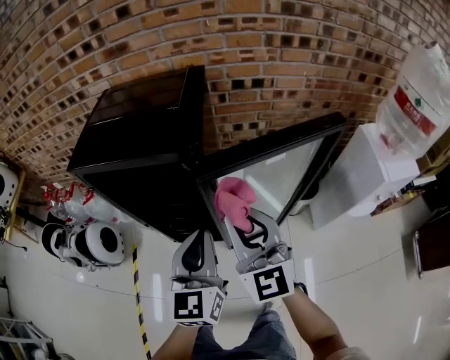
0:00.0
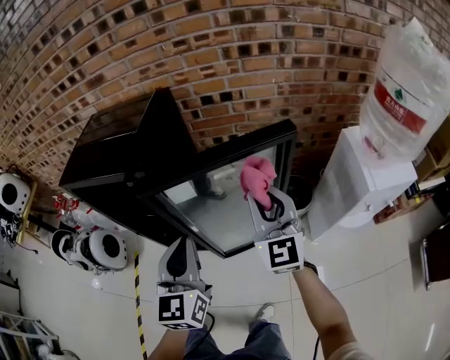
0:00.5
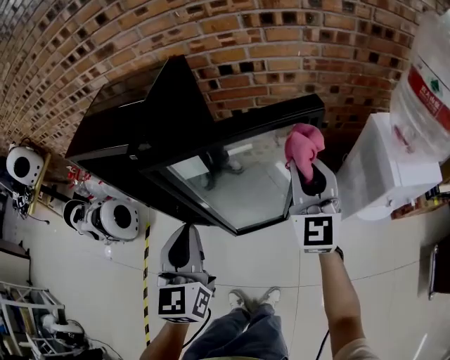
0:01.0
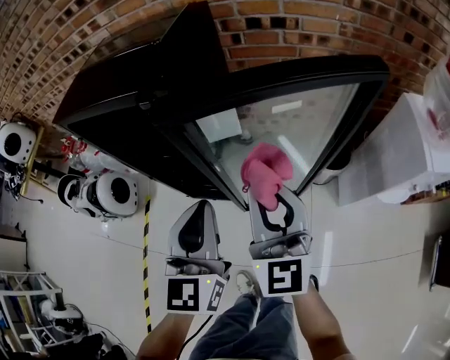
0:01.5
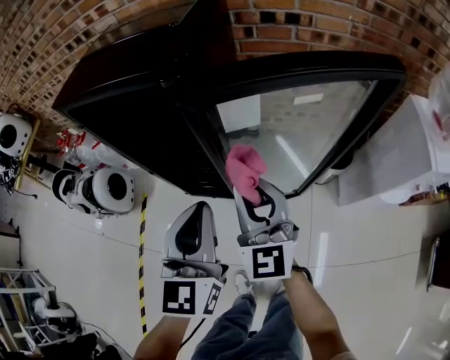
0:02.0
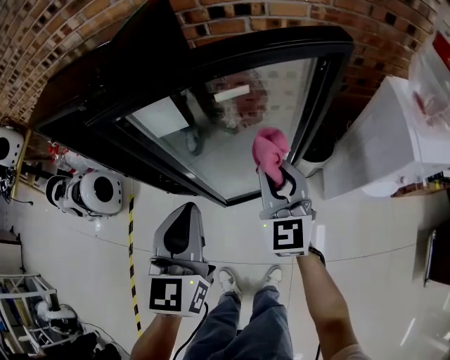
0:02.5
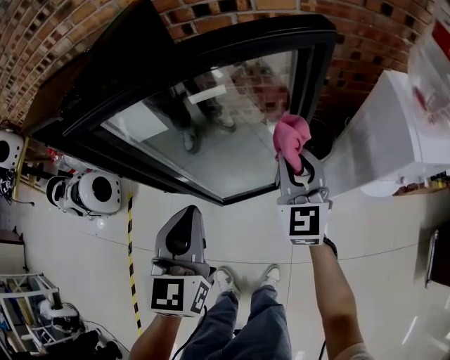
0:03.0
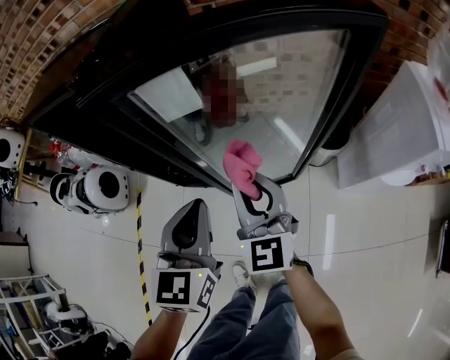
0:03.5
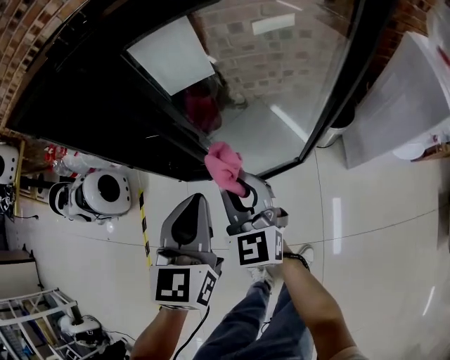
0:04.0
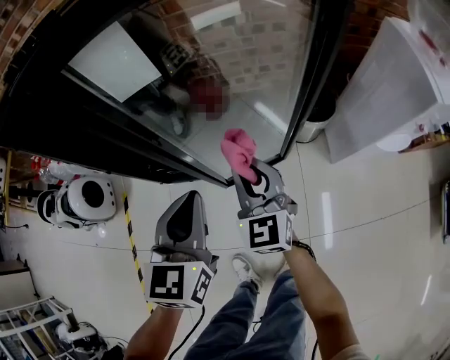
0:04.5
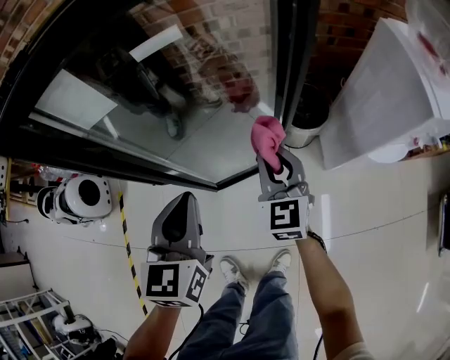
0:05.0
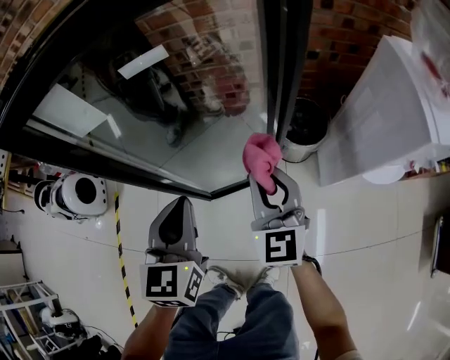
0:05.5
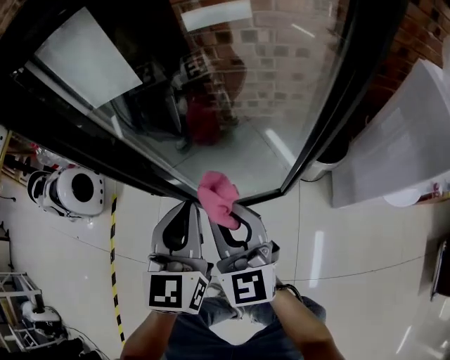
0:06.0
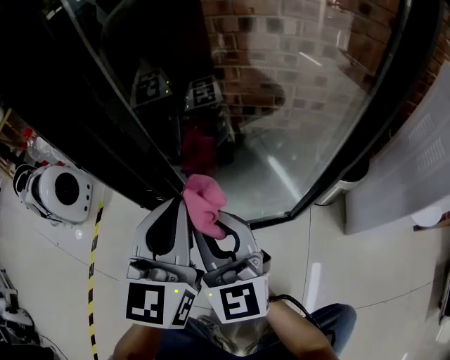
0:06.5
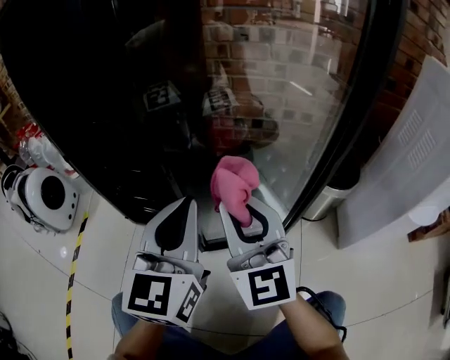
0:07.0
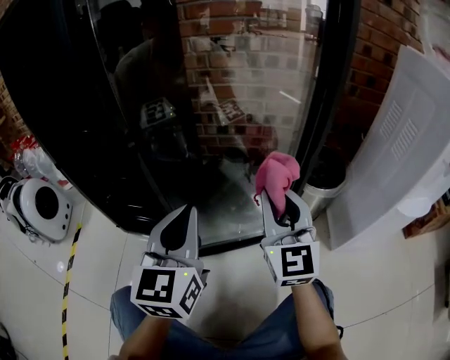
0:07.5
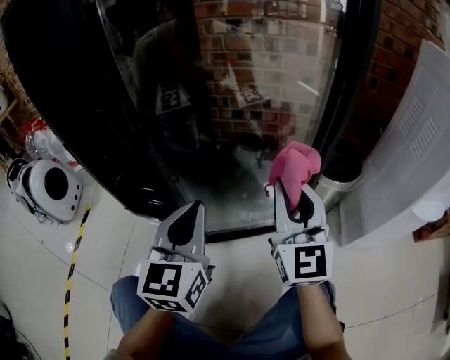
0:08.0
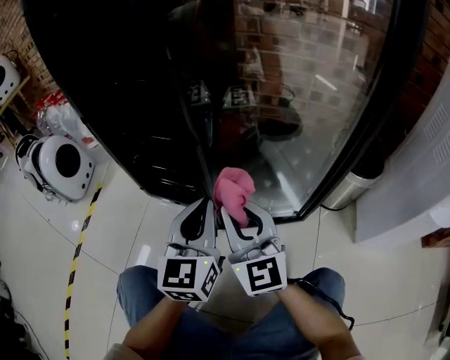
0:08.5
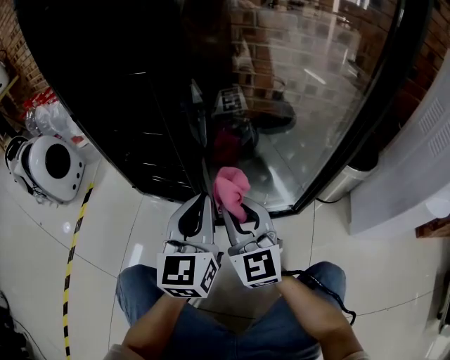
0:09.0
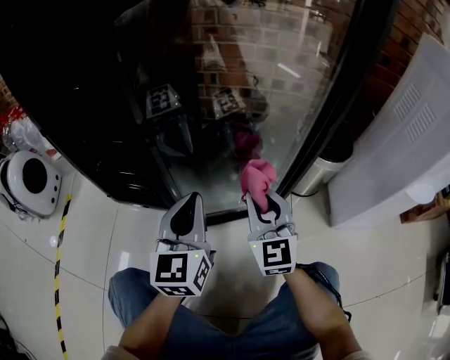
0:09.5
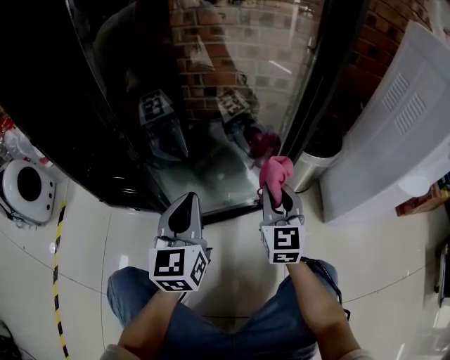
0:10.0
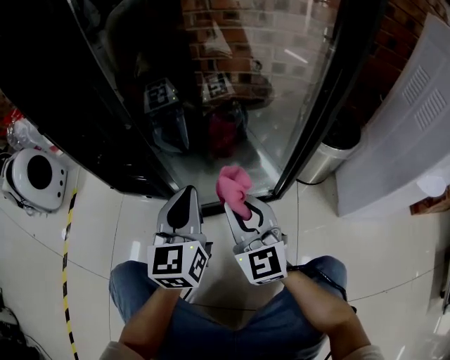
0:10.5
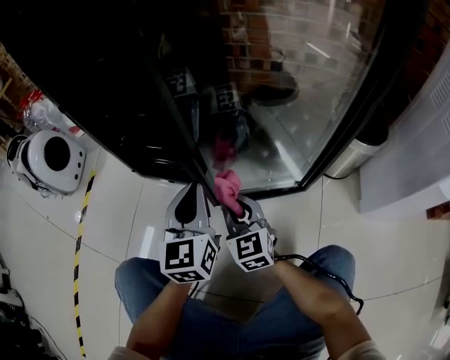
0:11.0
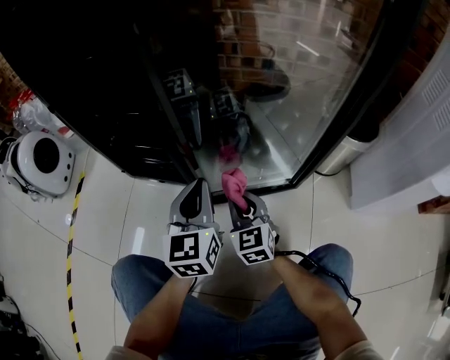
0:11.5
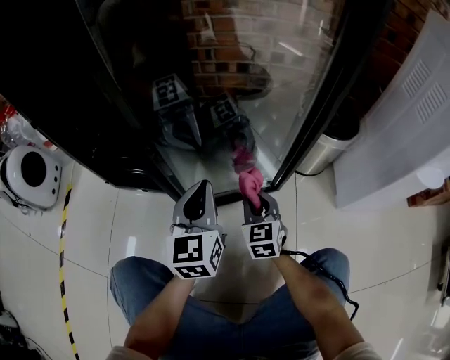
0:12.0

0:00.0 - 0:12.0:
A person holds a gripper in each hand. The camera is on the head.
0:00.0 - 0:02.0: The left gripper goes about 5 cm downward, and travels to the right and back again, some 10 cm each way; the right gripper travels downward by about 10 cm, and travels to the right and back again, roughly 25 cm each way.
0:02.0 - 0:04.0: Both grippers move downward, approximately 10 cm. The left gripper reaches about 15 cm to the right, then returns. Meanwhile the right gripper travels to the right and back again, about 25 cm each way.
0:04.0 - 0:06.0: The right gripper shifts approximately 5 cm downward, and travels to the right and back again, roughly 25 cm each way. The left gripper shifts some 10 cm downward and to the right.
0:06.0 - 0:08.0: The left gripper is displaced downward by approximately 20 cm. The right gripper travels downward and to the right by approximately 20 cm, and changes its angle by some 20 degrees.
0:08.0 - 0:10.0: The right gripper heads downward, covering approximately 15 cm, goes to the left and returns, about 20 cm each way, and changes its angle by about 20 degrees. Meanwhile the left gripper travels downward by approximately 10 cm.
0:10.0 - 0:12.0: The left gripper moves some 10 cm to the left and comes back. Meanwhile the right gripper travels downward and to the left by roughly 15 cm.

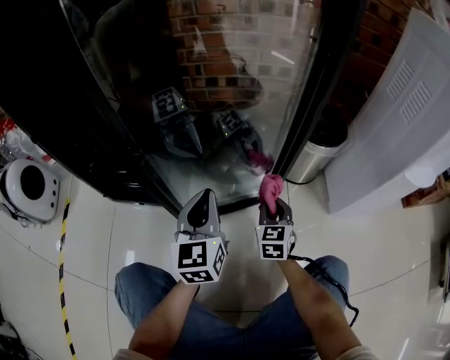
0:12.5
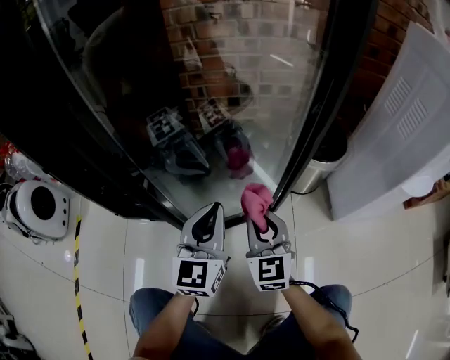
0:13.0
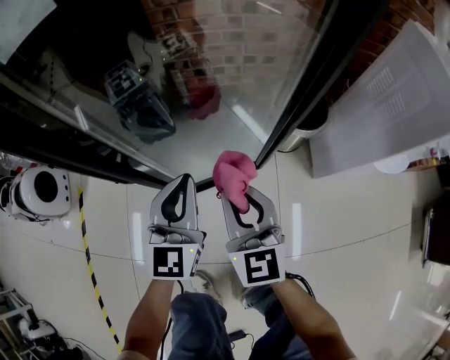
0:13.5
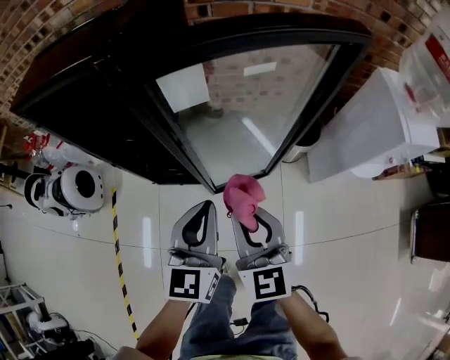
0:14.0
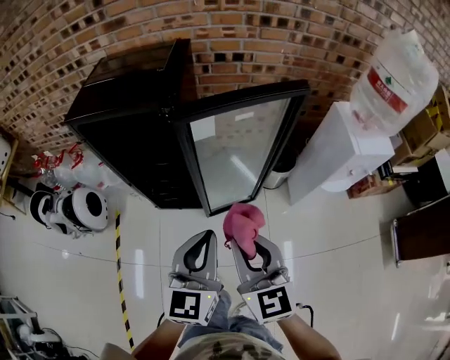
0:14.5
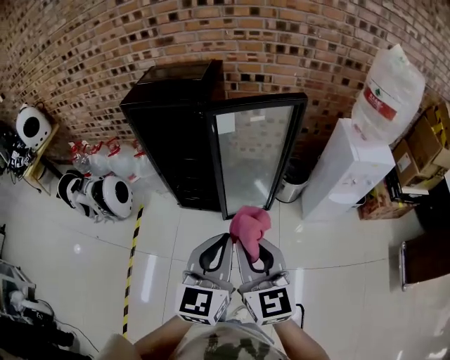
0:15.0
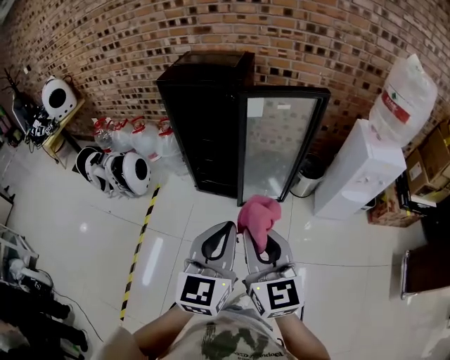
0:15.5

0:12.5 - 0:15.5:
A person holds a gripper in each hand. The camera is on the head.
0:12.5 - 0:14.0: The grippers both shift upward by about 50 cm. The right gripper rotates some 20 degrees.
0:14.0 - 0:15.5: Both grippers move backward and upward, roughly 40 cm.

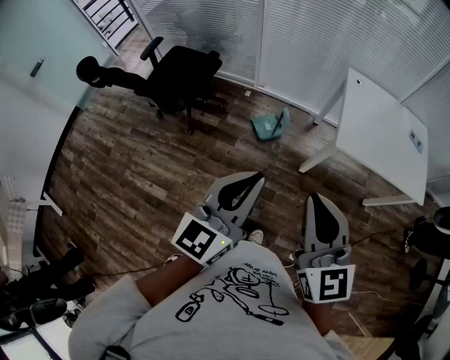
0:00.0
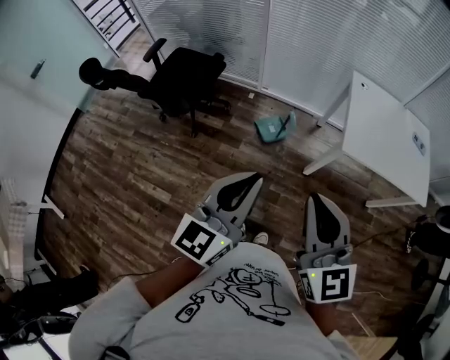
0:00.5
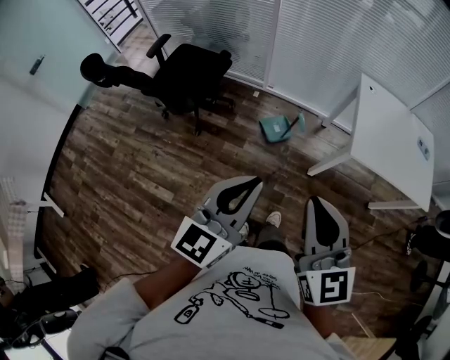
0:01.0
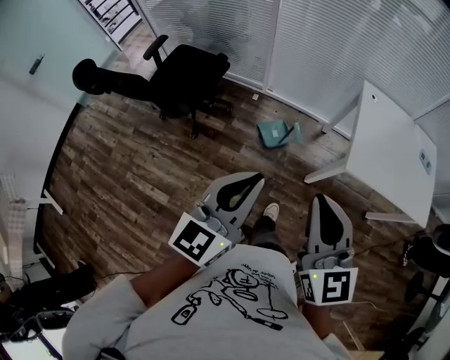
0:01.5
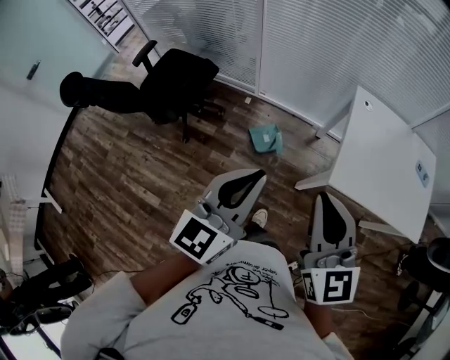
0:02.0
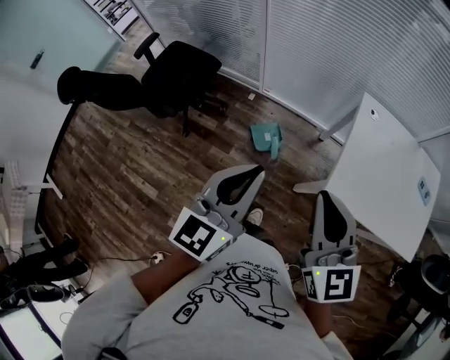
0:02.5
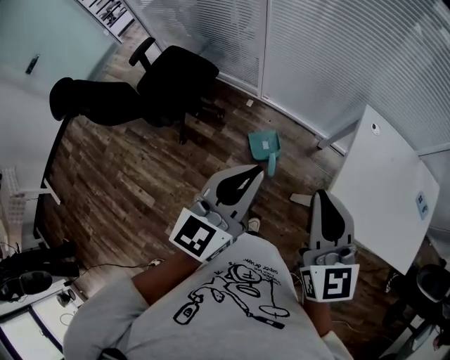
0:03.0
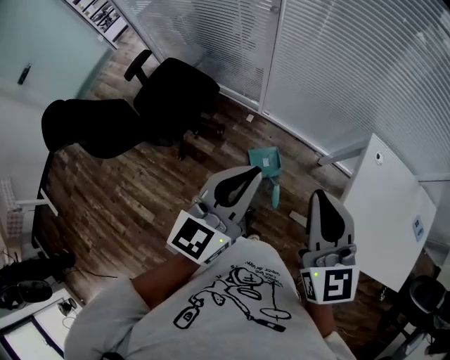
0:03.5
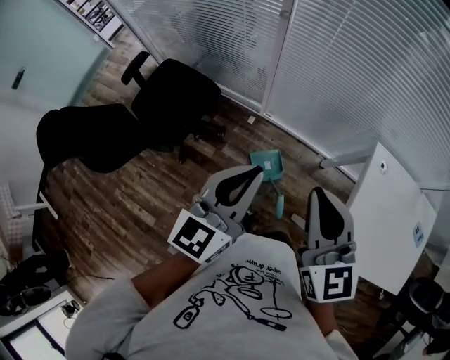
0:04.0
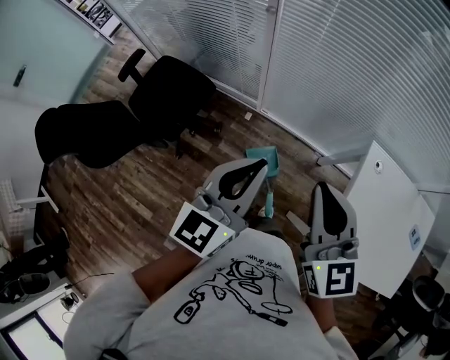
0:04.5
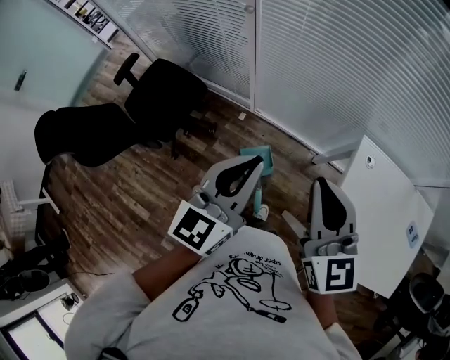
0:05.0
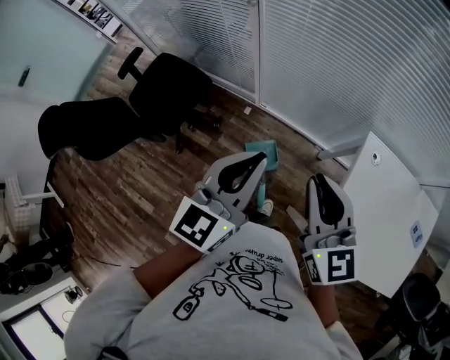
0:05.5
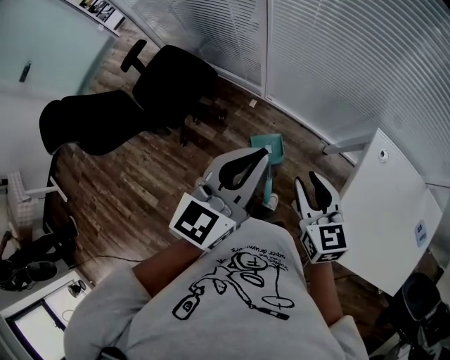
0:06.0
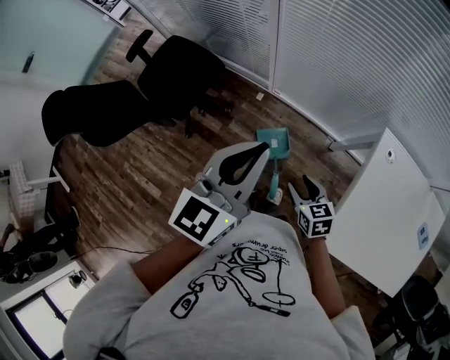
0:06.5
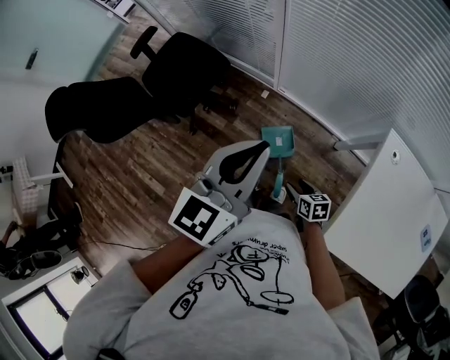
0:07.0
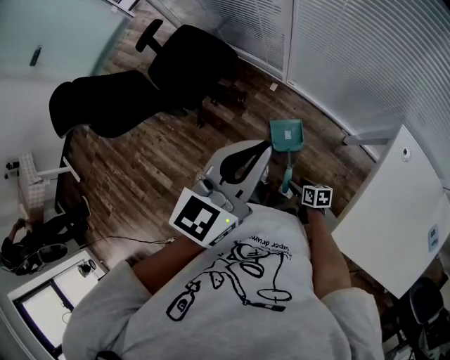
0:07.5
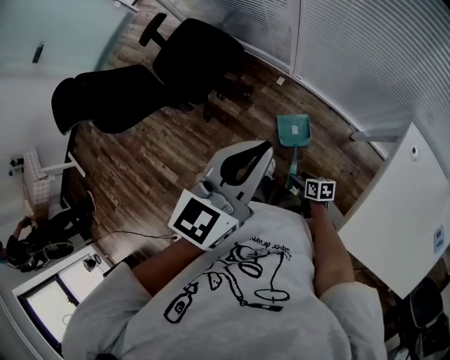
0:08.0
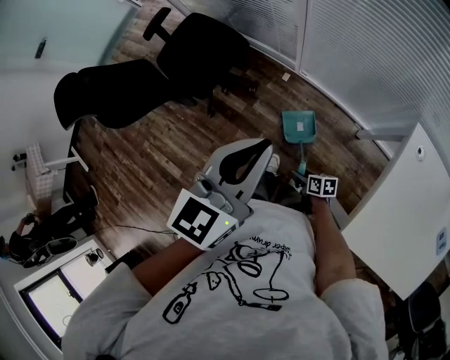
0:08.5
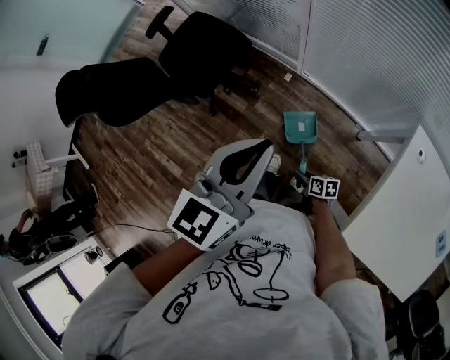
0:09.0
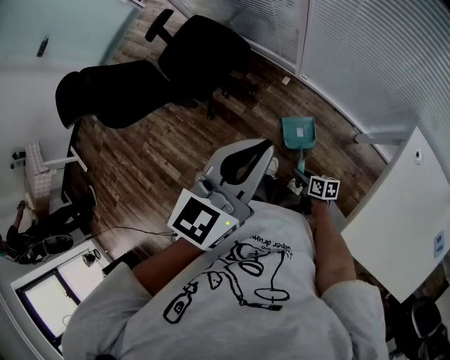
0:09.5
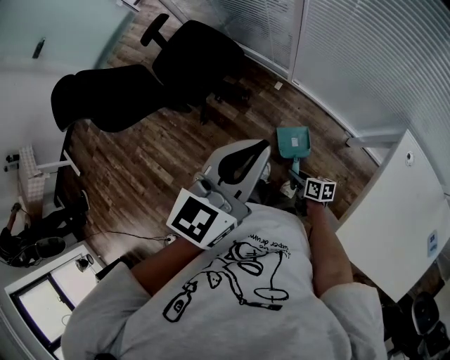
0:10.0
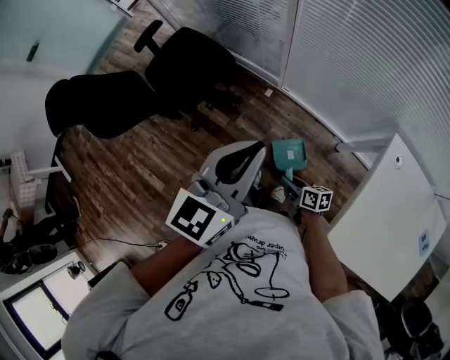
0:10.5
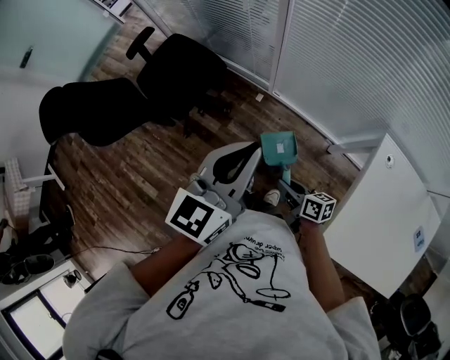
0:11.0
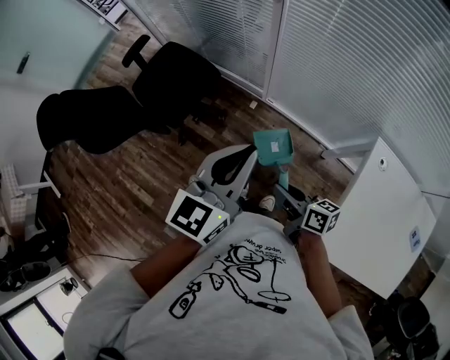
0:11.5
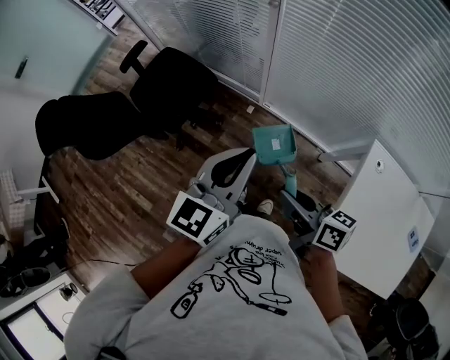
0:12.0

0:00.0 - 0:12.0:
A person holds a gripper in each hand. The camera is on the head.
0:00.0 - 0:02.0: Both grippers travel together forward, about 20 cm.
0:02.0 - 0:04.0: The two grippers go approximately 35 cm forward.
0:04.0 - 0:06.0: The left gripper shifts approximately 10 cm to the right, while the right gripper travels downward and to the right by some 20 cm, turns by about 20 degrees, and opens.
0:06.0 - 0:08.0: The right gripper heads downward, covering approximately 40 cm, swivels some 50 degrees, and opens its fingers. Meanwhile the left gripper travels to the left by approximately 5 cm.
0:08.0 - 0:10.0: The right gripper ends up approximately 5 cm from where it was, and closes its fingers.
0:10.0 - 0:12.0: The right gripper heads upward, covering about 35 cm, and swivels about 20 degrees.
